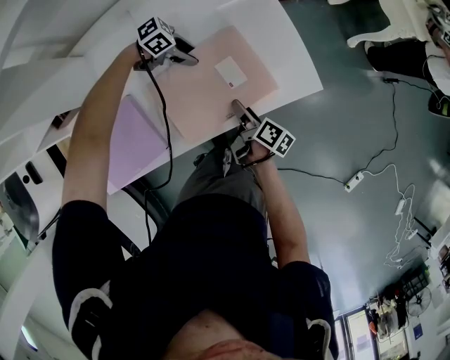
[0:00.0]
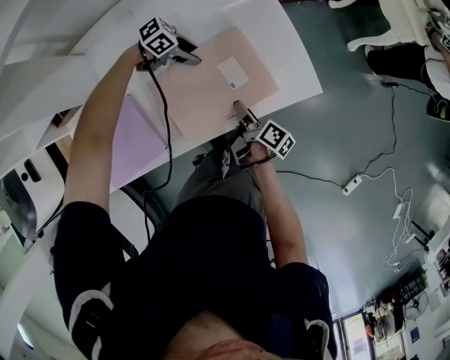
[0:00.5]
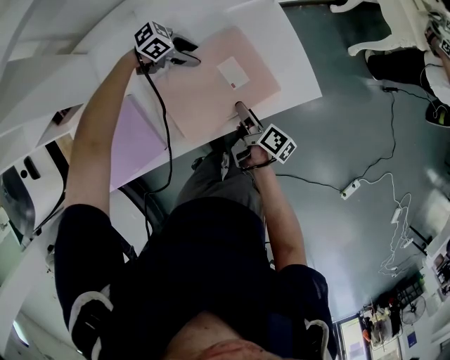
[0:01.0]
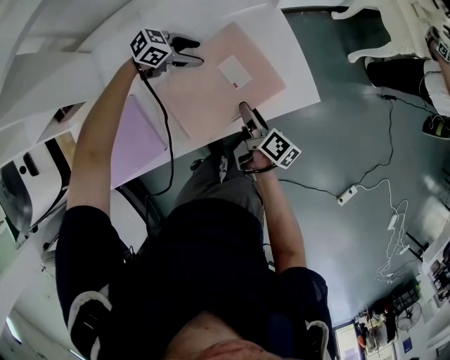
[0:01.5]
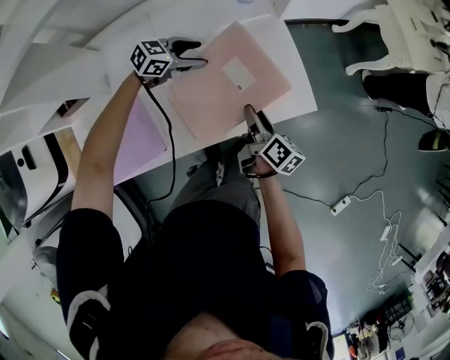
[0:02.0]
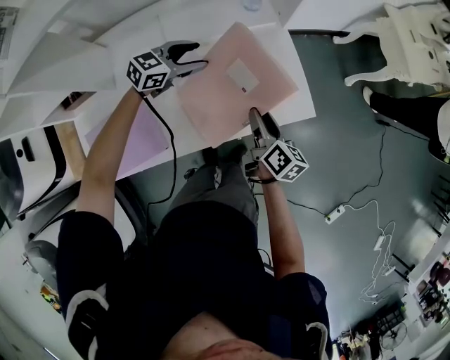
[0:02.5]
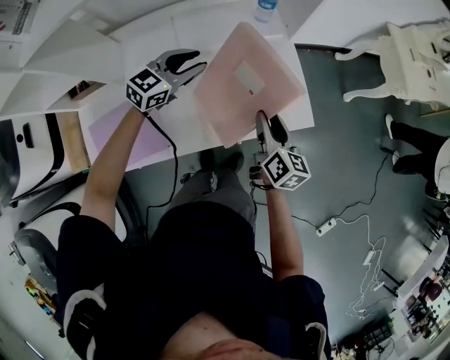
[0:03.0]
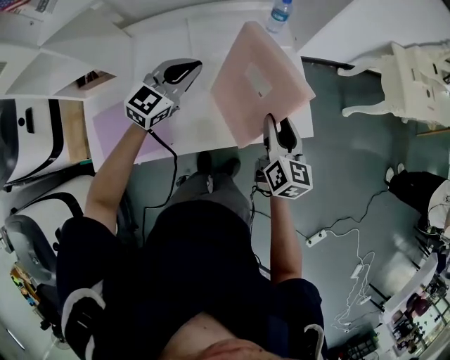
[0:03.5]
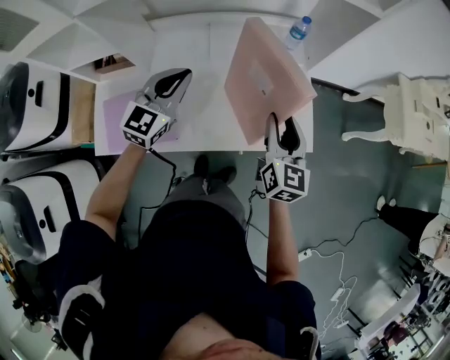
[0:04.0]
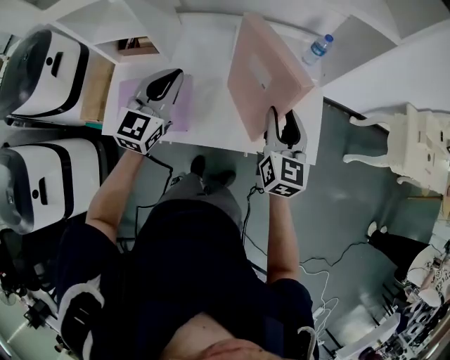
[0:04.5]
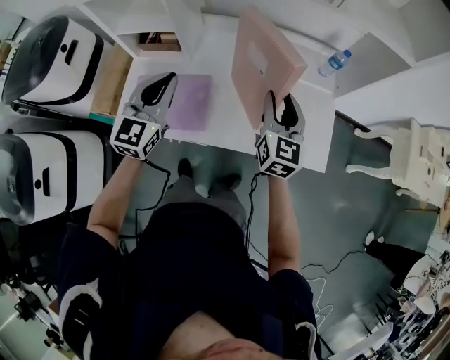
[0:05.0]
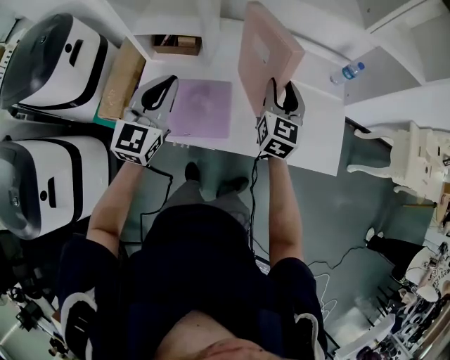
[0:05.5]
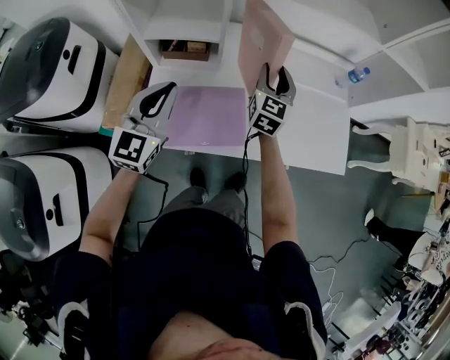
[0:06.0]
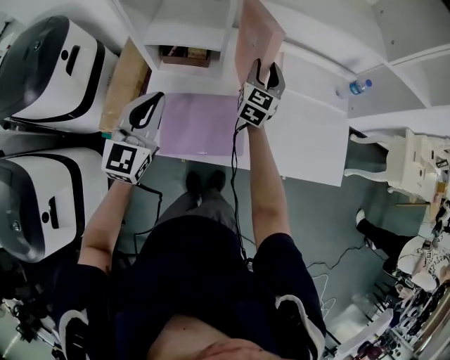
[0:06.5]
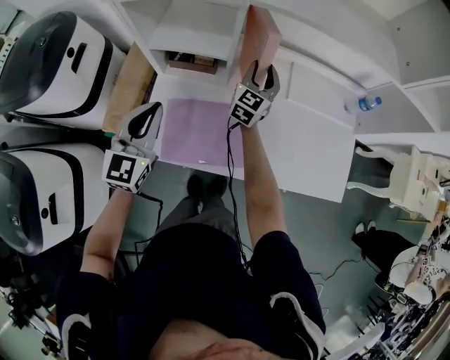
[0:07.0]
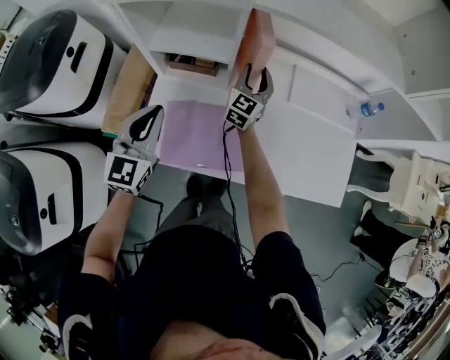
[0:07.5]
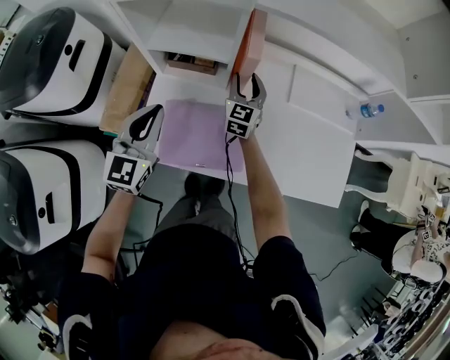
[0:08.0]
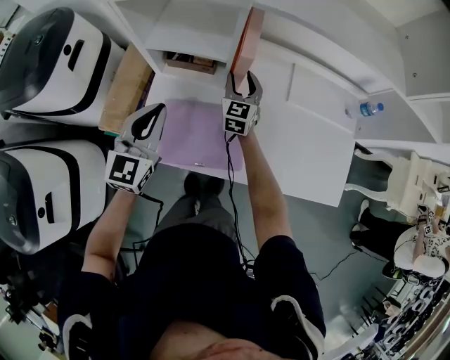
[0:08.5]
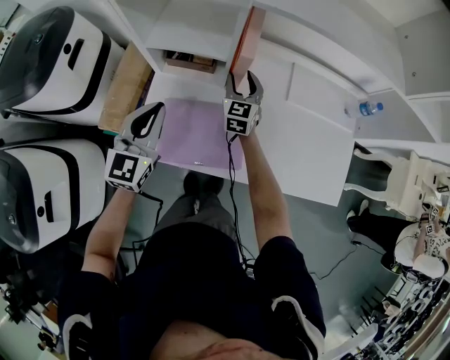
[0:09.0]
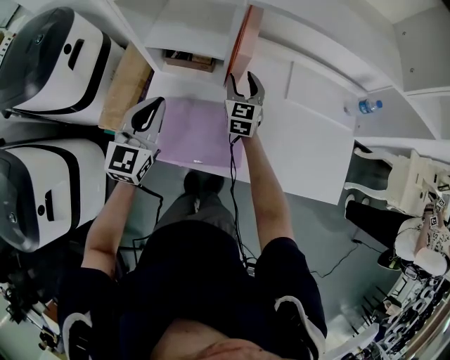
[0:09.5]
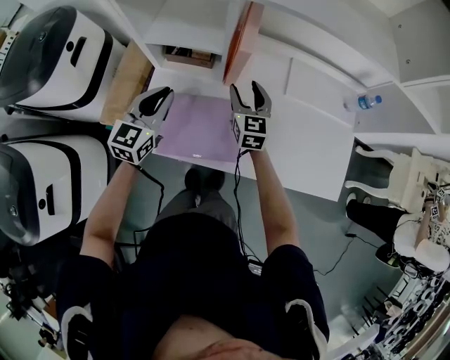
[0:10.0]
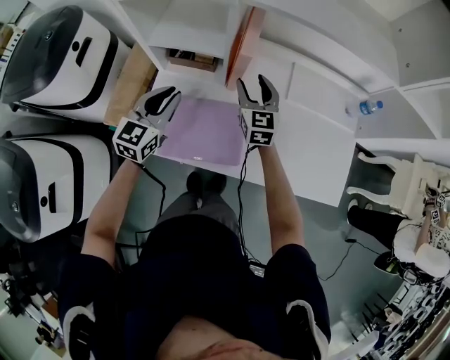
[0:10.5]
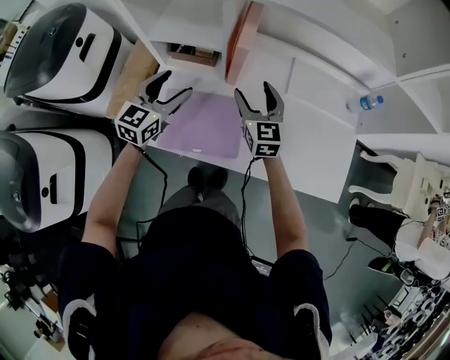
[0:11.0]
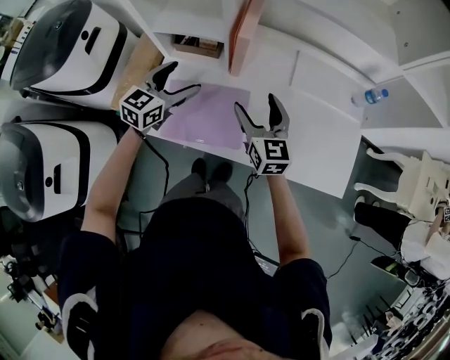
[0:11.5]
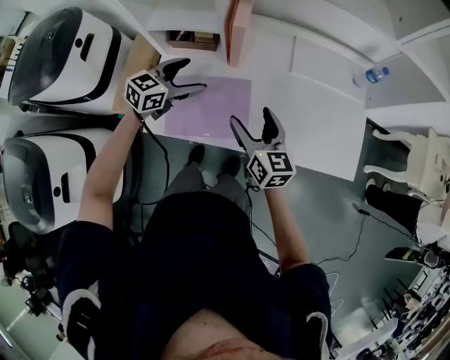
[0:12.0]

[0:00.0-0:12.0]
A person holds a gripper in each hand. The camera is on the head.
0:00.0 to 0:02.0: The grippers both shift upward by approximately 10 cm. The left gripper rotates some 40 degrees.
0:02.0 to 0:04.0: Both grippers move upward, some 20 cm. The right gripper rolls counterclockwise, seen from behind, by some 50 degrees. Meanwhile the left gripper turns by roughly 60 degrees, and closes.
0:04.0 to 0:06.0: Both grippers move to the left, about 35 cm.
0:06.0 to 0:08.0: The left gripper shifts by roughly 5 cm, while the right gripper travels to the left, downward and forward by roughly 20 cm.
0:08.0 to 0:10.0: The right gripper travels backward by approximately 5 cm.
0:10.0 to 0:12.0: The left gripper shifts about 5 cm to the right, rotates roughly 30 degrees, and opens. The right gripper is displaced backward by approximately 15 cm, swivels approximately 20 degrees, and opens.

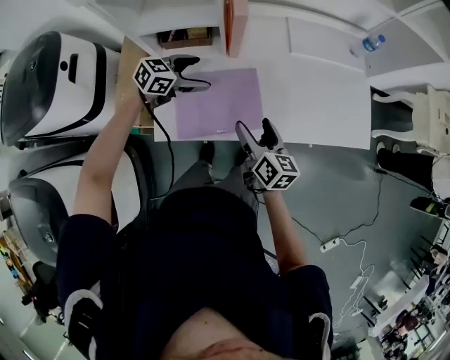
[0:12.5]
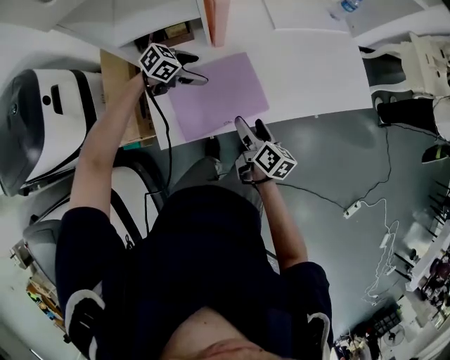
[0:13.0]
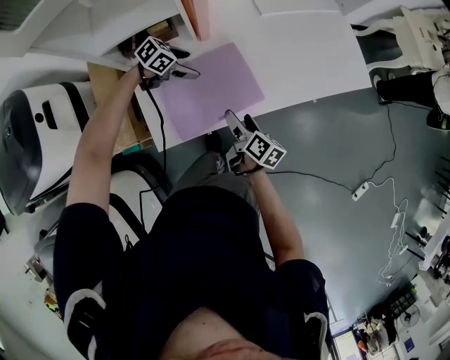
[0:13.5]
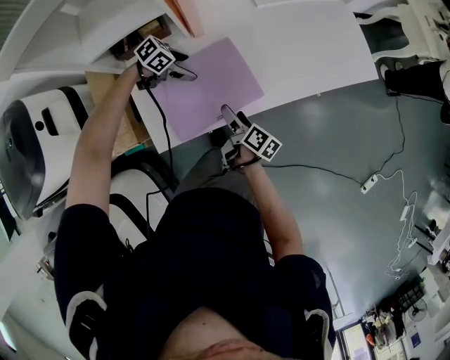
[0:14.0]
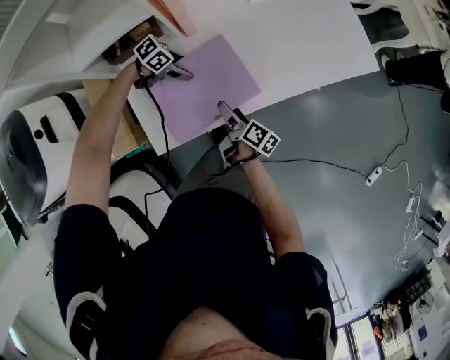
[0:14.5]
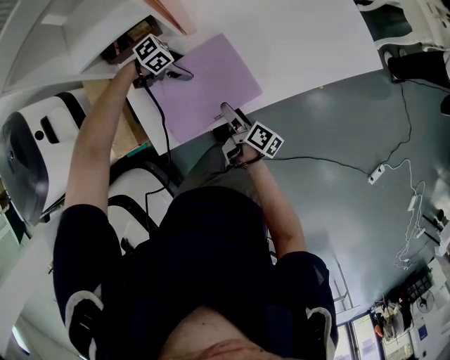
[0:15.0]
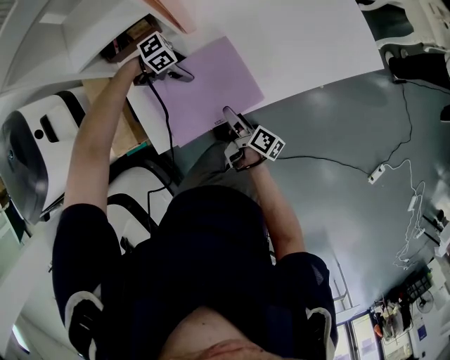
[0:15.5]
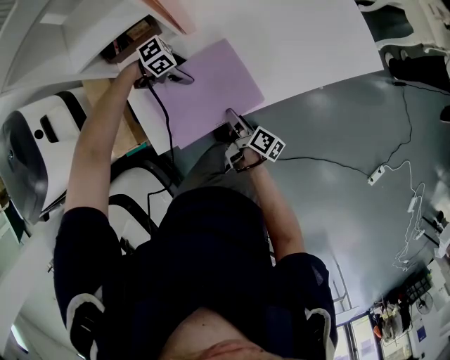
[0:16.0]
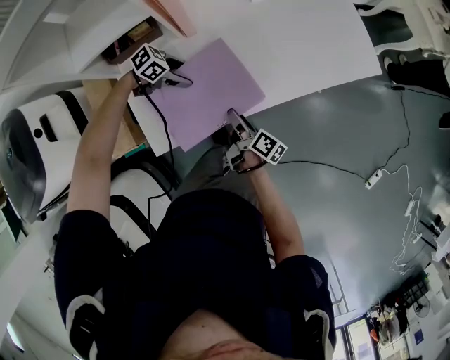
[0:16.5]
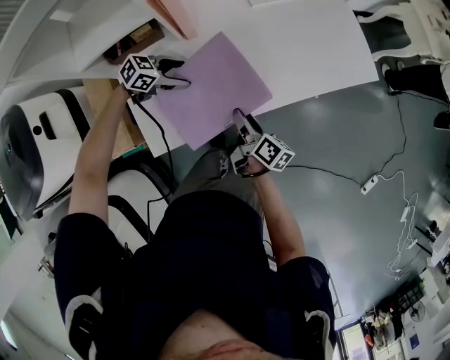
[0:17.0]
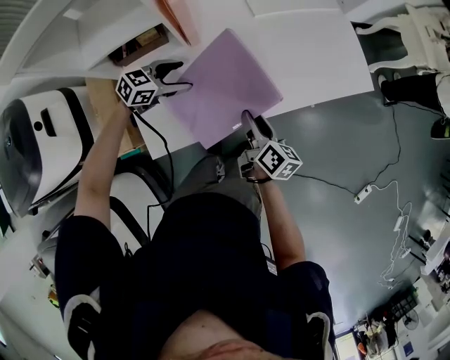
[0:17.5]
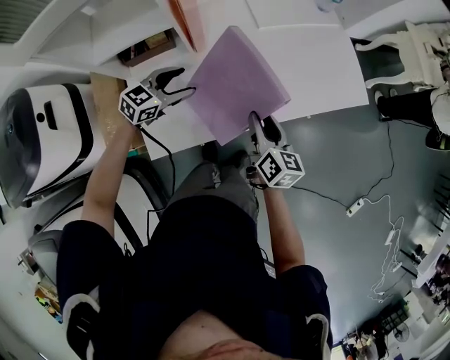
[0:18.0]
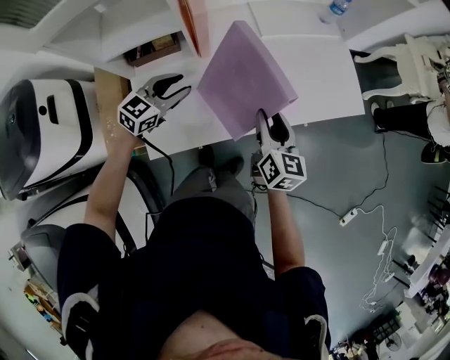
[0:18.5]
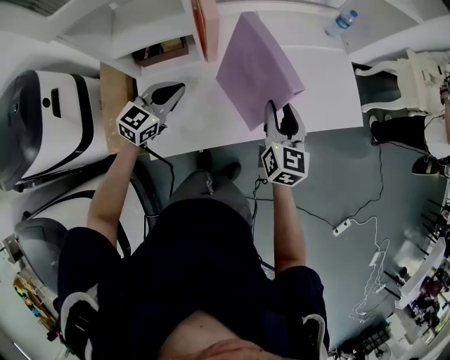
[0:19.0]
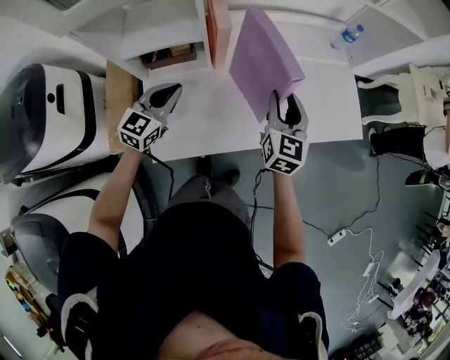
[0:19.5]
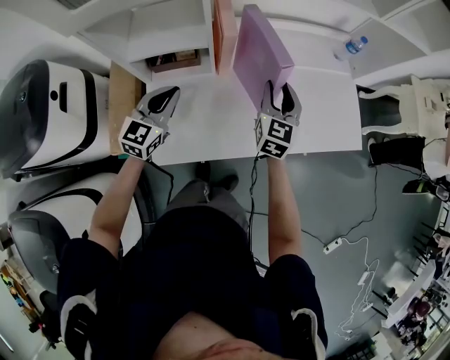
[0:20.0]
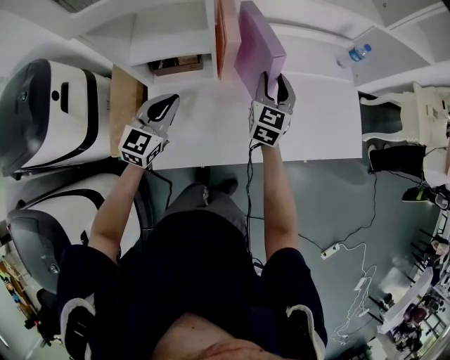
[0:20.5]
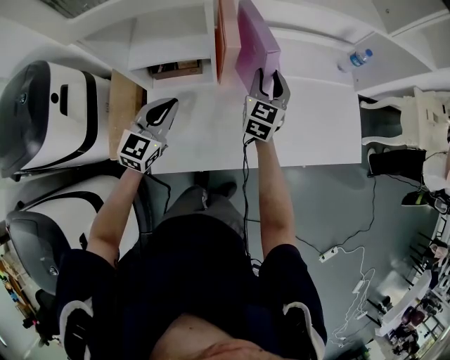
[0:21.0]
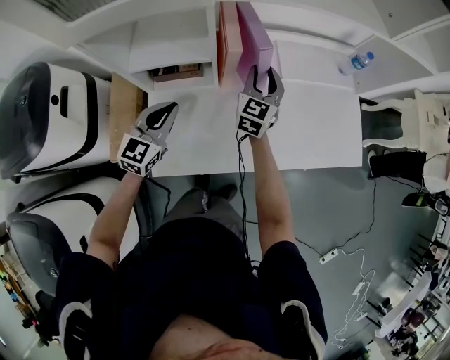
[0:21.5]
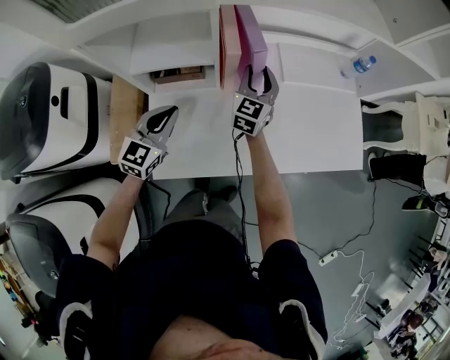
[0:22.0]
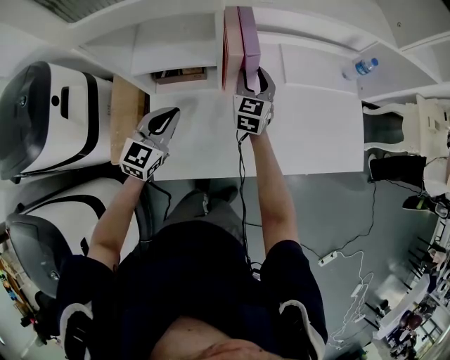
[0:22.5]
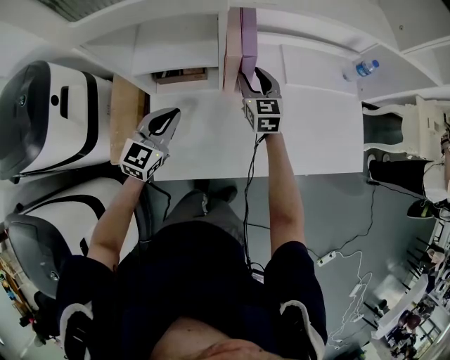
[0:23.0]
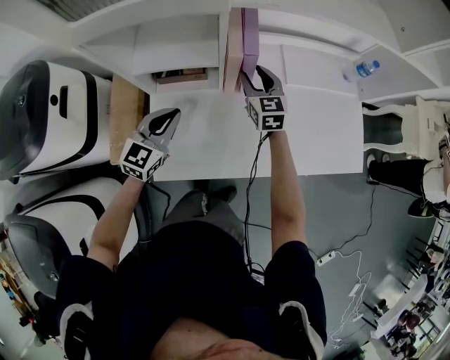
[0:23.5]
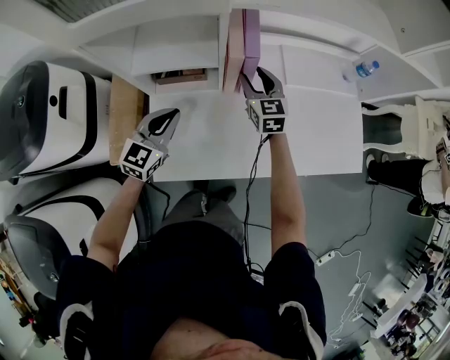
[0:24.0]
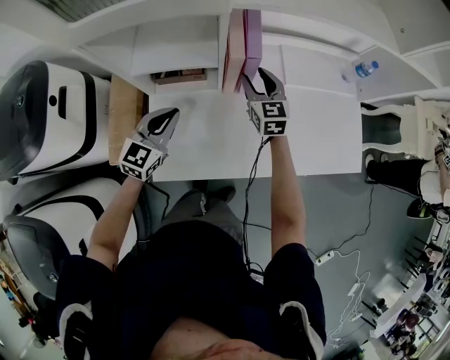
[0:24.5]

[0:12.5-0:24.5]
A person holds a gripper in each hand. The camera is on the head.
0:12.5 to 0:14.5: Both grippers move downward, some 15 cm. The right gripper rotates around the line of its fingers by about 50 degrees, clockwise from behind; the left gripper swivels about 50 degrees.
0:14.5 to 0:16.5: The right gripper closes its fingers.
0:16.5 to 0:18.5: The grippers both shift upward by about 20 cm. The left gripper changes its angle by approximately 60 degrees, and closes. The right gripper twists about 50 degrees counterclockwise, seen from behind.
0:18.5 to 0:20.5: The left gripper heads upward and to the left, covering some 10 cm, rotates about 30 degrees, and closes its fingers, while the right gripper goes about 20 cm forward and to the left, and changes its angle by about 30 degrees.
0:20.5 to 0:22.5: The right gripper moves to the left, about 10 cm.
0:22.5 to 0:24.5: The grippers stay close to where they were, moving slightly.

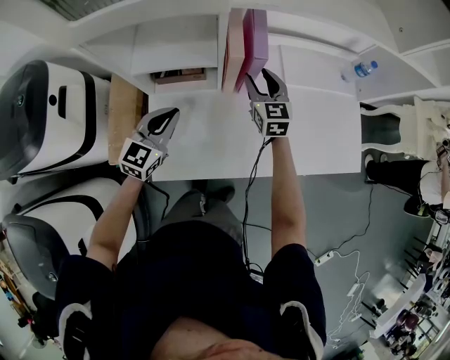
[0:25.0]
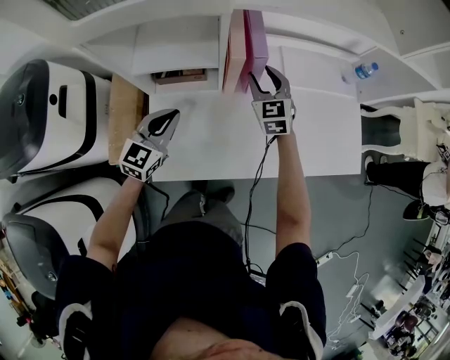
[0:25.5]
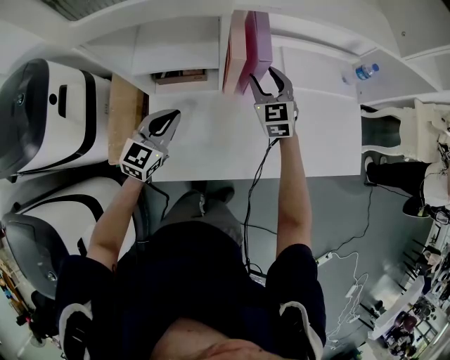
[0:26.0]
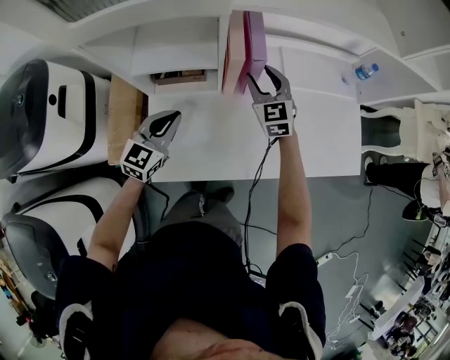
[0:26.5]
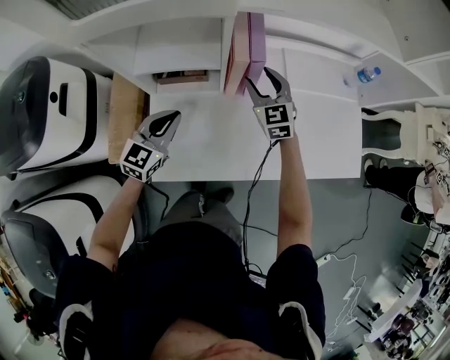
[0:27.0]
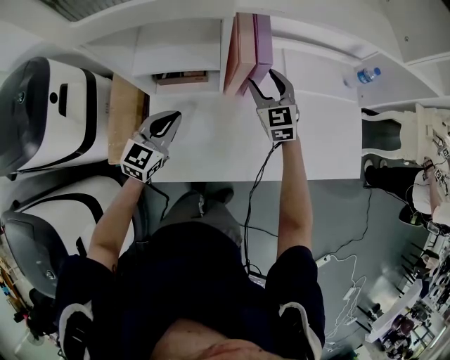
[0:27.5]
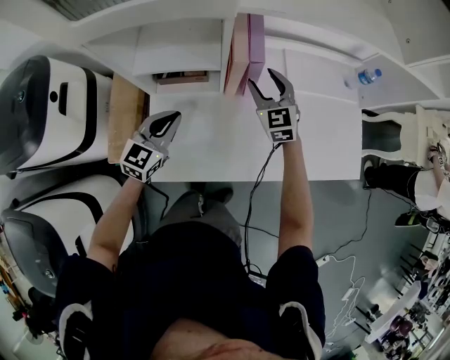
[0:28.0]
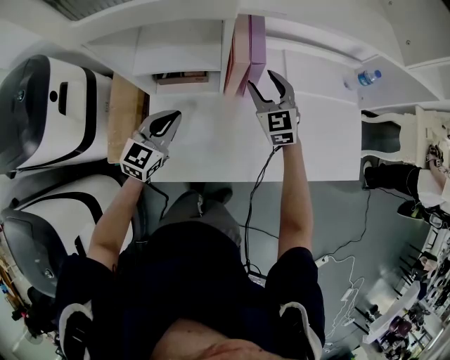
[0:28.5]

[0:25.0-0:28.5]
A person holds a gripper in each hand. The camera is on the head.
0:27.0 to 0:28.5: The two grippers keep their place.
